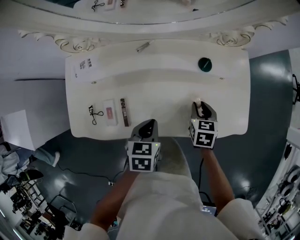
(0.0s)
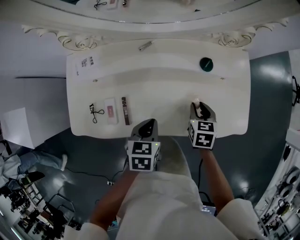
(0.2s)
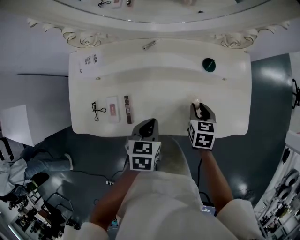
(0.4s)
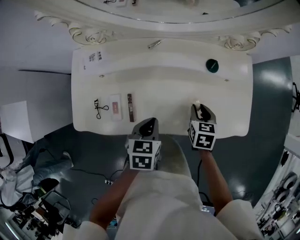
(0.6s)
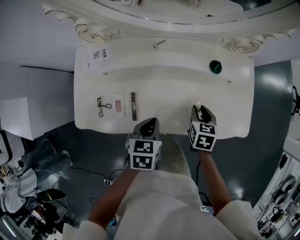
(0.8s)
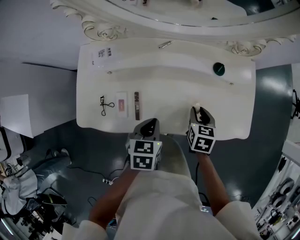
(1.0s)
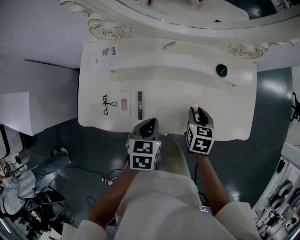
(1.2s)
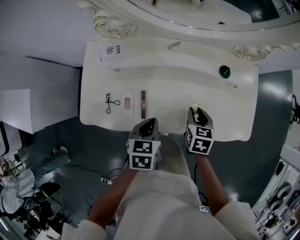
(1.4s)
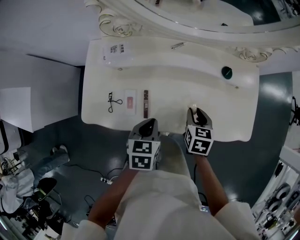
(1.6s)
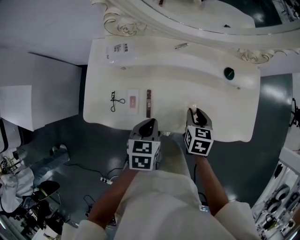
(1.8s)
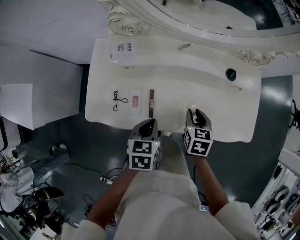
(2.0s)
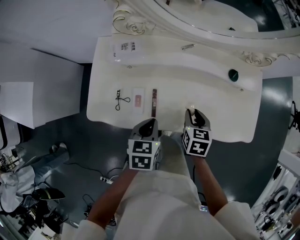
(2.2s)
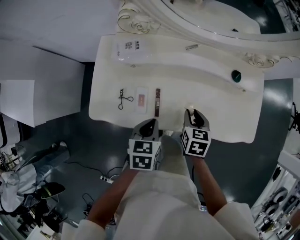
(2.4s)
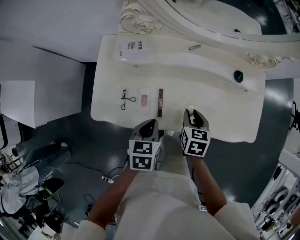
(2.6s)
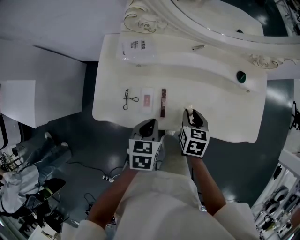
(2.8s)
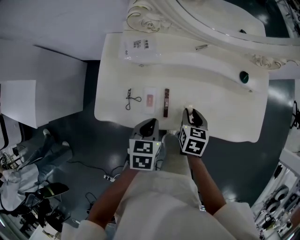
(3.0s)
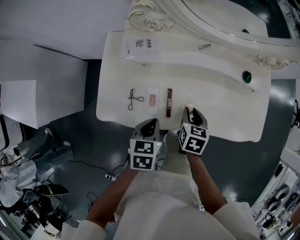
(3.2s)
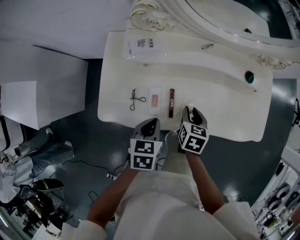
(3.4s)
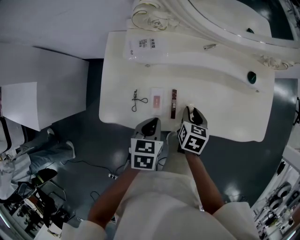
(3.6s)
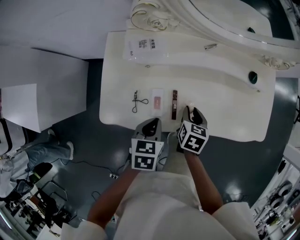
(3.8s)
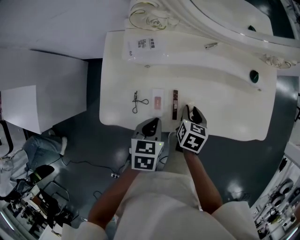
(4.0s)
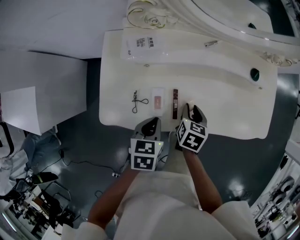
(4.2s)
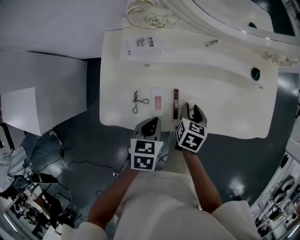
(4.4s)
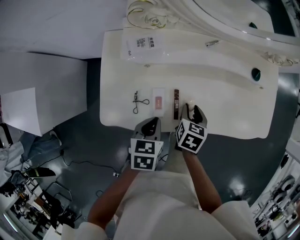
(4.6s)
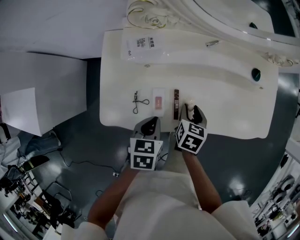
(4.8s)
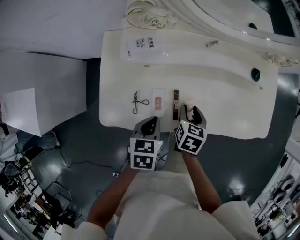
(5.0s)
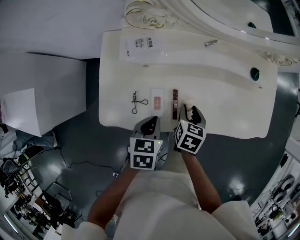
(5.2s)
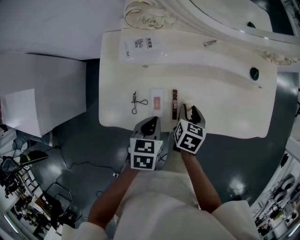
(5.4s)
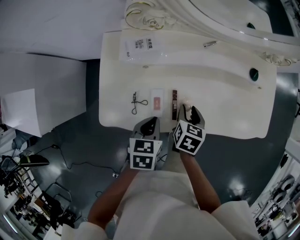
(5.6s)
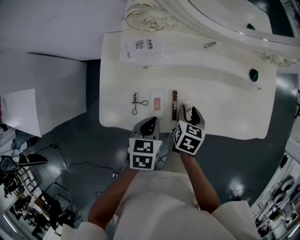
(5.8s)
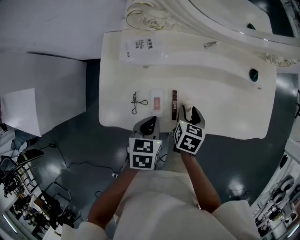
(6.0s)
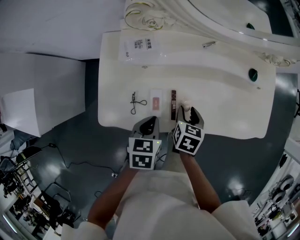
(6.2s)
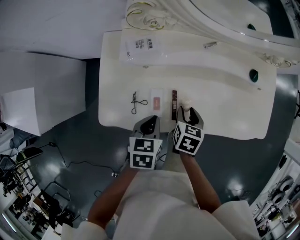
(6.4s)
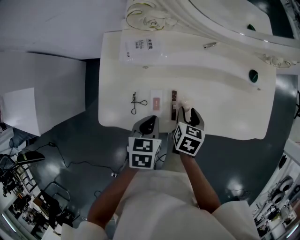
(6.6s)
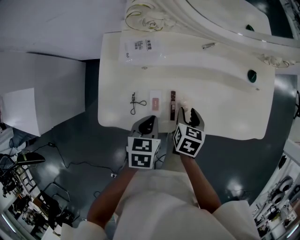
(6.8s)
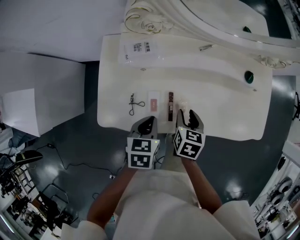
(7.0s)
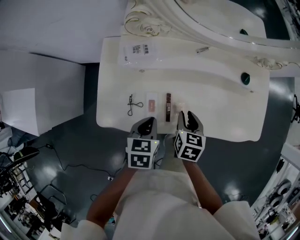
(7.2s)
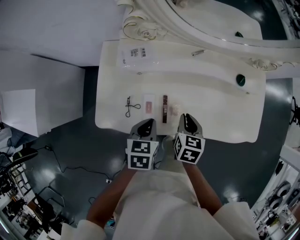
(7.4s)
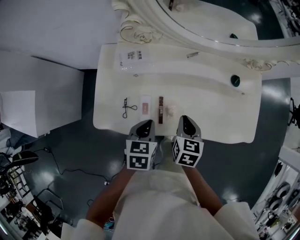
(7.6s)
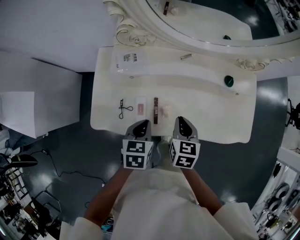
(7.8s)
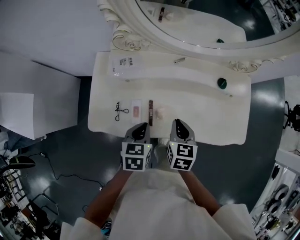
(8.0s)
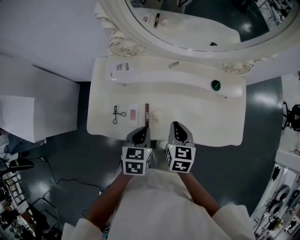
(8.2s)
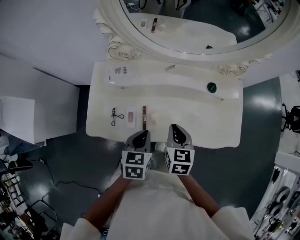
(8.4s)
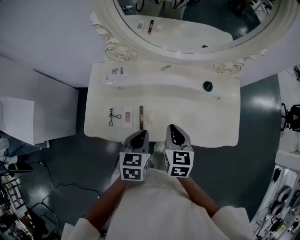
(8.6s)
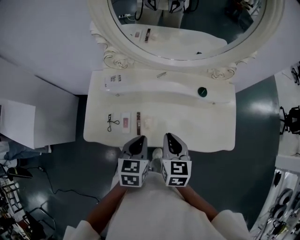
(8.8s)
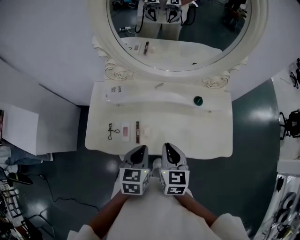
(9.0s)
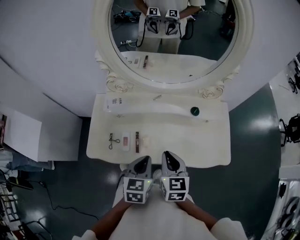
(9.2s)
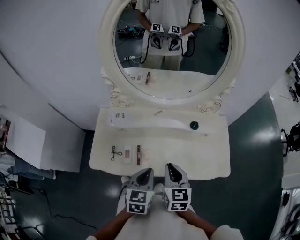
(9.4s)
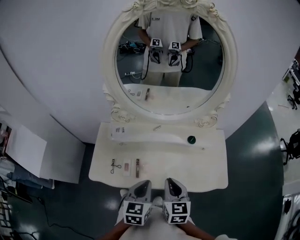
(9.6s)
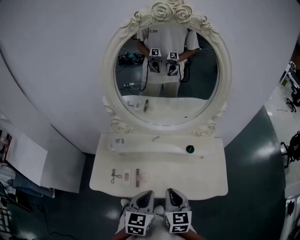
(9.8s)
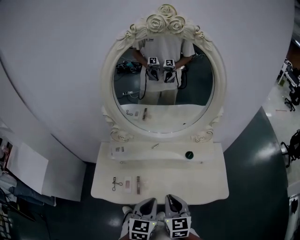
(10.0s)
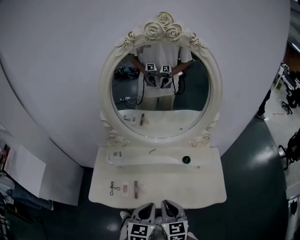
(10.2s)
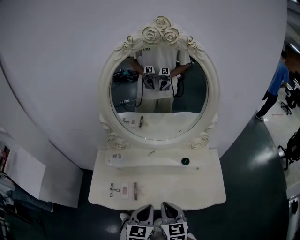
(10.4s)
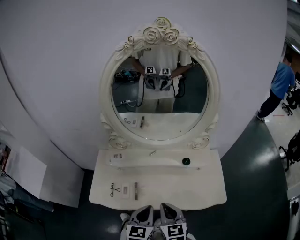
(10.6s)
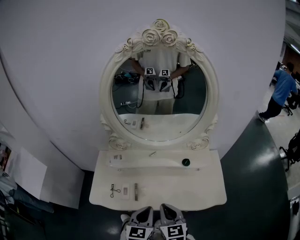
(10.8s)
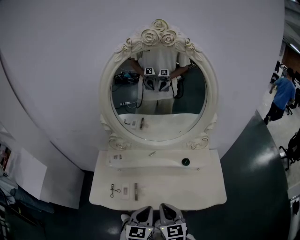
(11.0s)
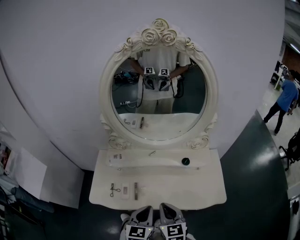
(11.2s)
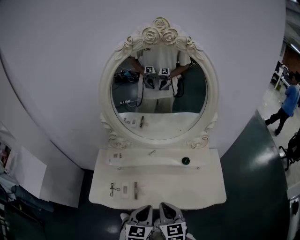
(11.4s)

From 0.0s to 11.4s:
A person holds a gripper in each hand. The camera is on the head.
From 0.0s to 1.4s: Both grippers travel together to the left, approximately 10 cm.
From 1.4s to 2.8s: Both grippers move to the left, some 10 cm.
From 2.8s to 4.2s: The right gripper changes place by roughly 5 cm.
From 4.2s to 5.6s: Both grippers stay about where they are.
From 5.6s to 7.2s: The grippers move only a little.
From 7.2s to 8.6s: The right gripper shifts about 15 cm upward and to the right, and closes its fingers; the left gripper shifts some 15 cm to the right and upward.
From 8.6s to 10.0s: The right gripper goes about 10 cm upward and backward. The left gripper is displaced upward and to the right by approximately 15 cm.
From 10.0s to 11.4s: The grippers move only a little.

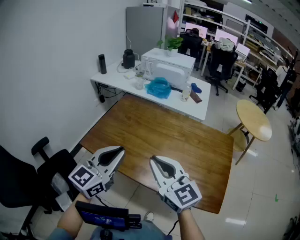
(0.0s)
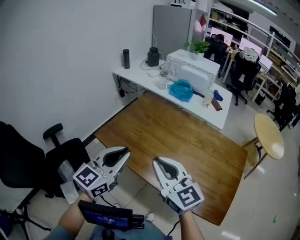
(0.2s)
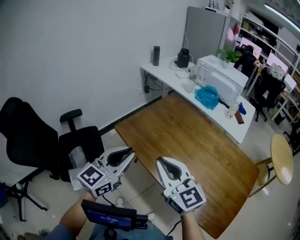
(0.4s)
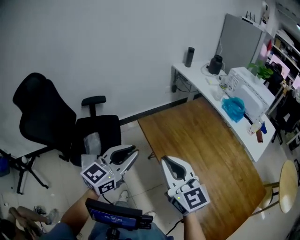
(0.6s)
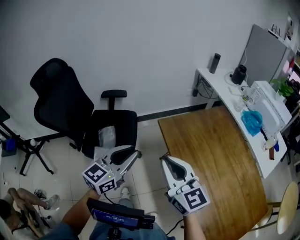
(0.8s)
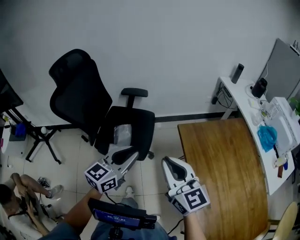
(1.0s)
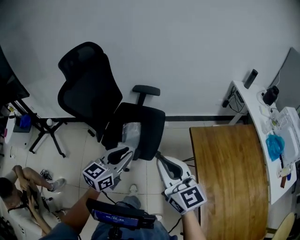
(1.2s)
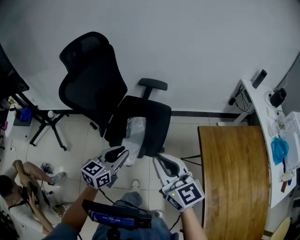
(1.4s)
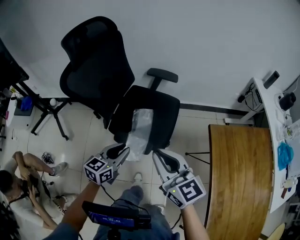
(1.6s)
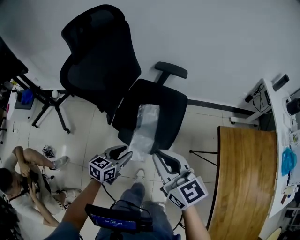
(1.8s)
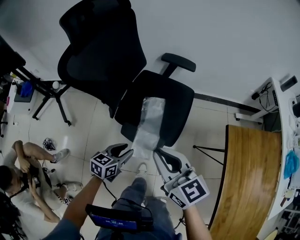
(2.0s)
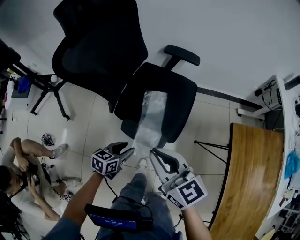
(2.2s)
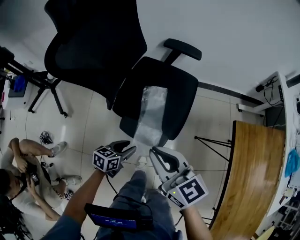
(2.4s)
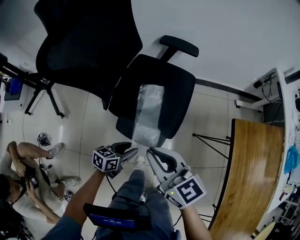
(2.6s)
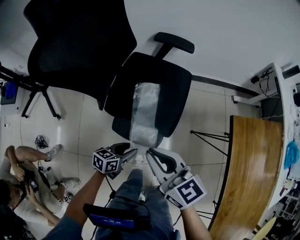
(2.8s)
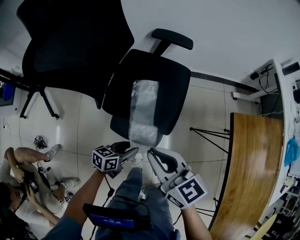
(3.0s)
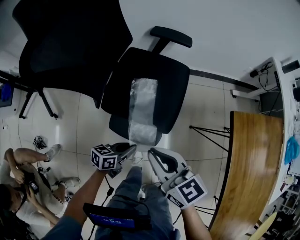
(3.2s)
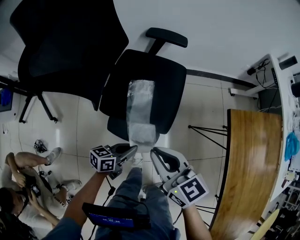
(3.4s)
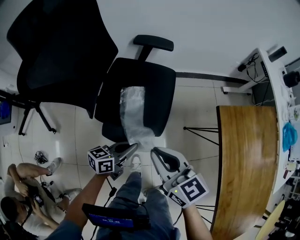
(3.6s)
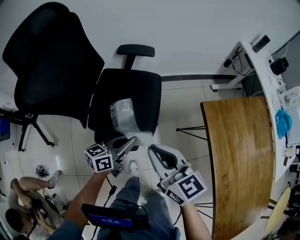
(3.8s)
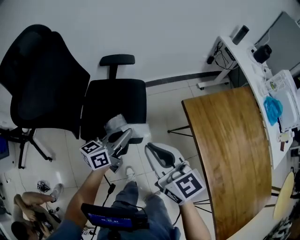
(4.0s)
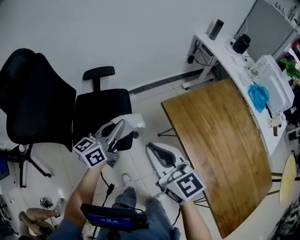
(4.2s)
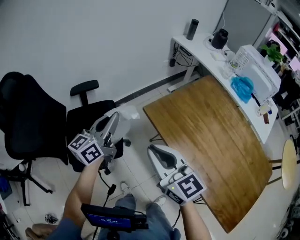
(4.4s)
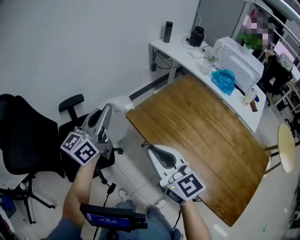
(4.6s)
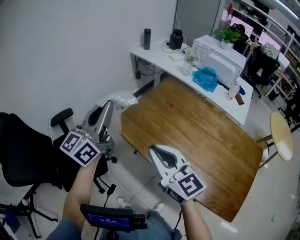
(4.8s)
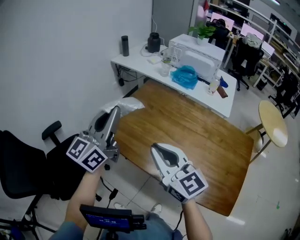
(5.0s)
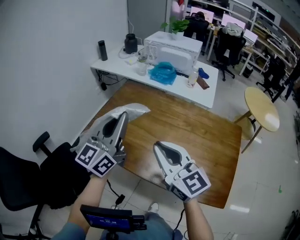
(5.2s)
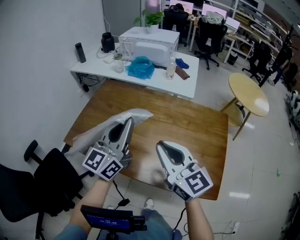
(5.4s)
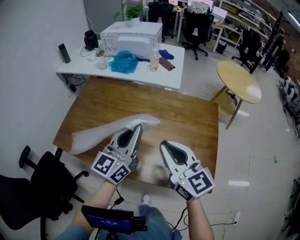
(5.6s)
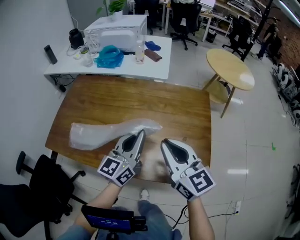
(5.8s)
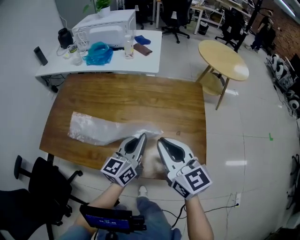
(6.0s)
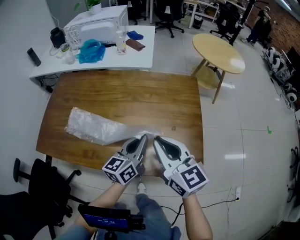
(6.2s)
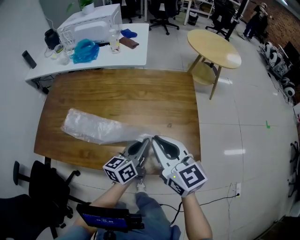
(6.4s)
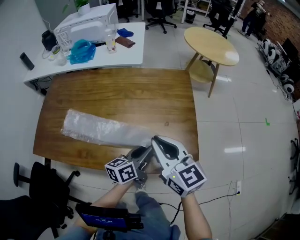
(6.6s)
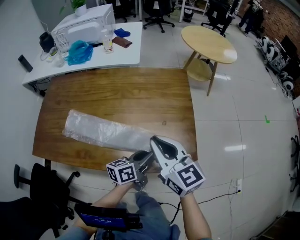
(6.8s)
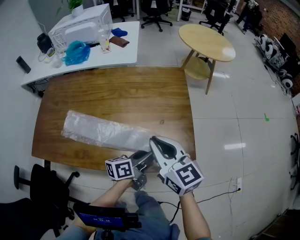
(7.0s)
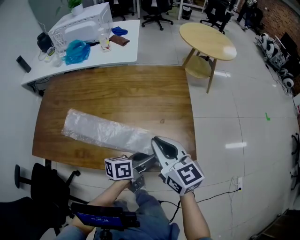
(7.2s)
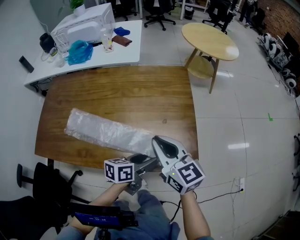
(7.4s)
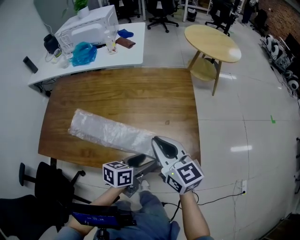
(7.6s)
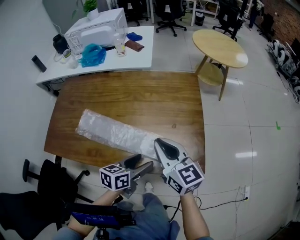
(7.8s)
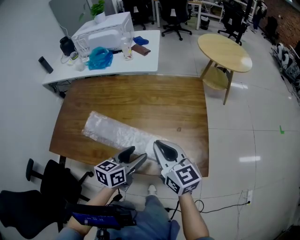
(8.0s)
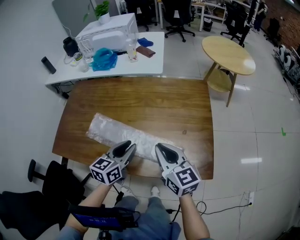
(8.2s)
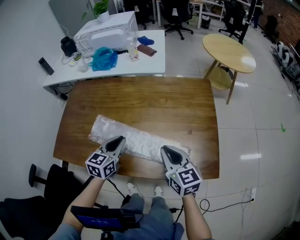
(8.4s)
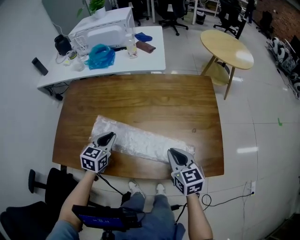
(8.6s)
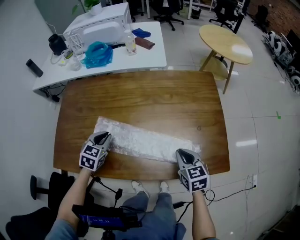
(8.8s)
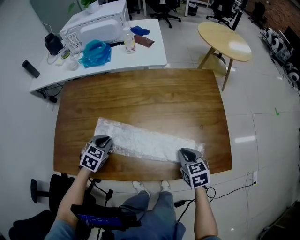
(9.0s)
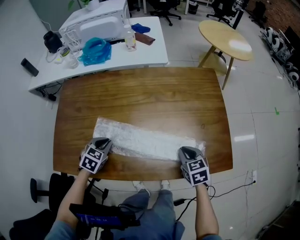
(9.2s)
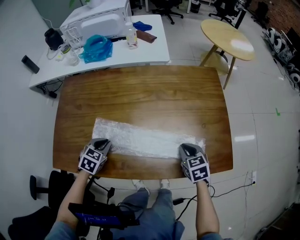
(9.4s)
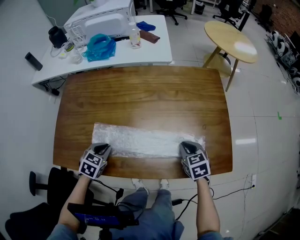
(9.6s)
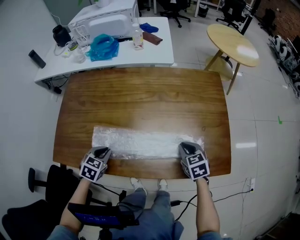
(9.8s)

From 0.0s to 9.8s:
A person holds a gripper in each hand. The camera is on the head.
From 0.0s to 1.4s: Both grippers are carried roughly 50 cm. The right gripper swivels approximately 60 degrees. The left gripper turns by approximately 60 degrees.
From 1.4s to 2.8s: The left gripper shifts roughly 30 cm downward, and turns by approximately 40 degrees; the right gripper goes about 20 cm downward, to the left and forward.
From 2.8s to 4.2s: The right gripper goes about 25 cm to the right and upward, and rotates roughly 30 degrees. Meanwhile the left gripper shifts some 35 cm upward, to the right and forward, angles its fingers upward, by approximately 30 degrees, and closes up.
From 4.2s to 5.6s: Both grippers are carried roughly 60 cm. The left gripper changes its angle by roughly 50 degrees; the right gripper turns by roughly 60 degrees.
From 5.6s to 7.0s: The left gripper moves to the right and downward, about 30 cm, turns by some 60 degrees, and opens up, while the right gripper travels to the right and downward by some 15 cm.
From 7.0s to 8.4s: The right gripper moves to the left and downward, roughly 10 cm. Meanwhile the left gripper travels to the left by some 25 cm, twists approximately 40 degrees clockwise, seen from behind, and closes its fingers.
From 8.4s to 9.8s: The left gripper goes roughly 20 cm to the left and downward, and angles its fingers downward, by about 30 degrees; the right gripper travels downward by some 15 cm, and points its fingers some 30 degrees further downward.

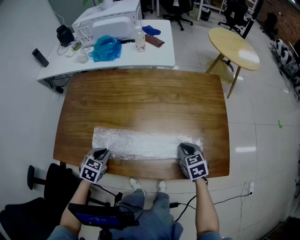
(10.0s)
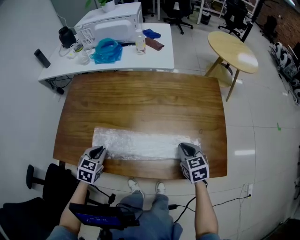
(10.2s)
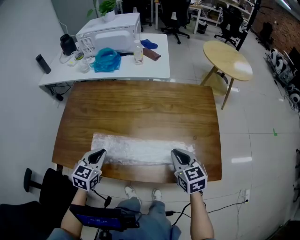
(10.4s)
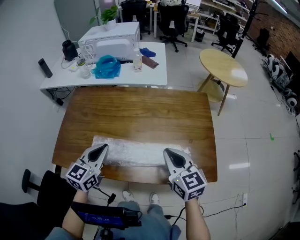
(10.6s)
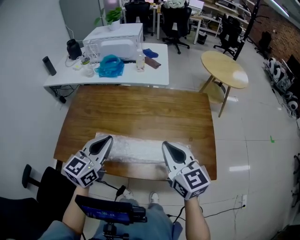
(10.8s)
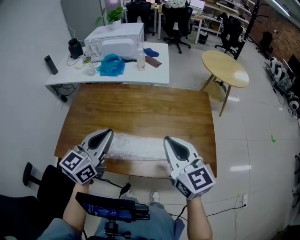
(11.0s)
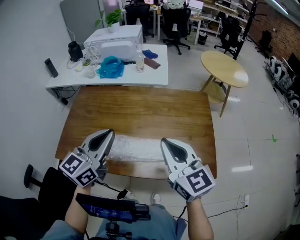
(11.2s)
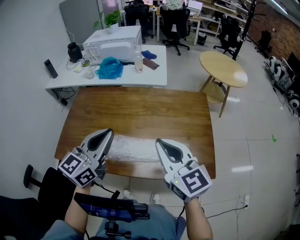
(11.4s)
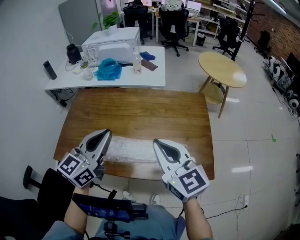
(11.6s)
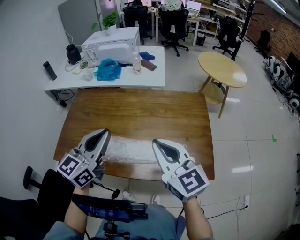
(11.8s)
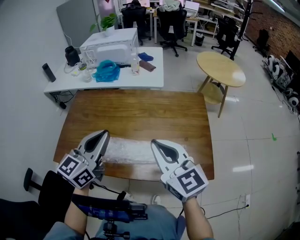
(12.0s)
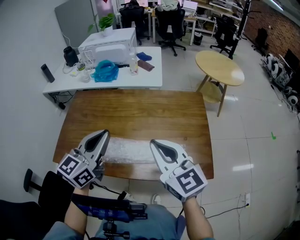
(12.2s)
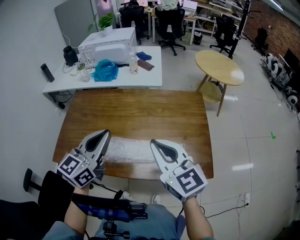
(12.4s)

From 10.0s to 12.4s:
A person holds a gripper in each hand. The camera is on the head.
From 10.0s to 11.2s: Both grippers travel together upward, about 30 cm. The right gripper tilts its fingers some 40 degrees upward; the left gripper points its fingers approximately 50 degrees further upward.
From 11.2s to 12.4s: There are only small adjustments of the grippers.
